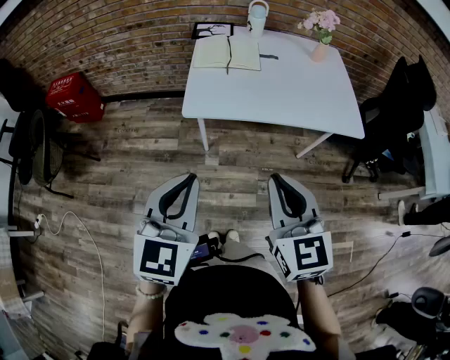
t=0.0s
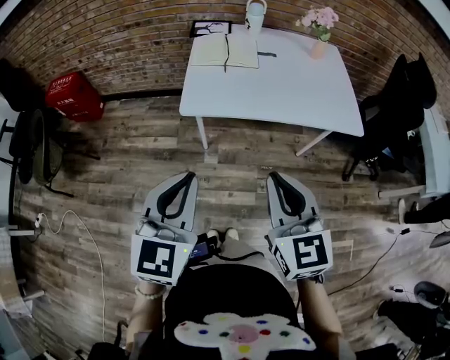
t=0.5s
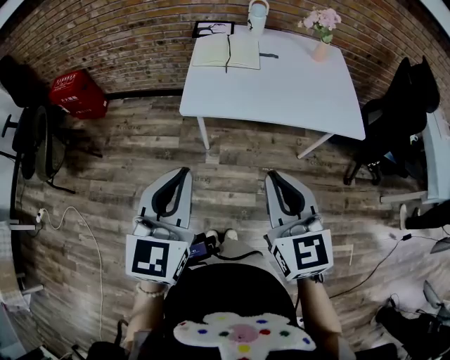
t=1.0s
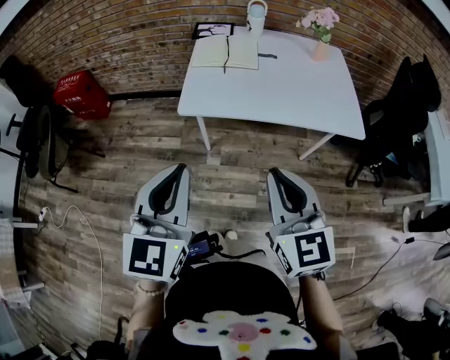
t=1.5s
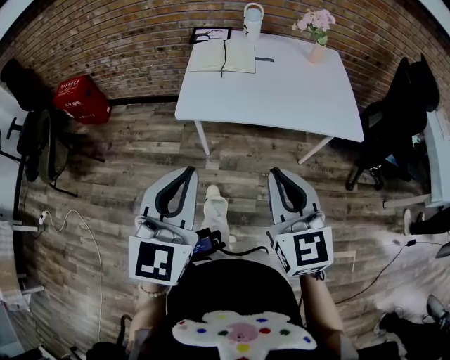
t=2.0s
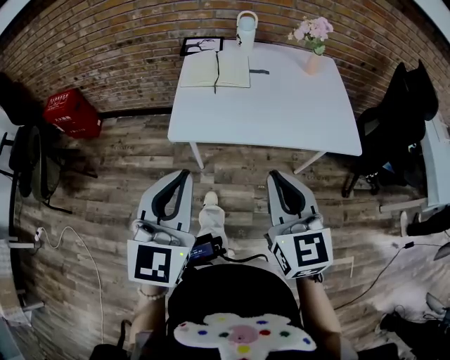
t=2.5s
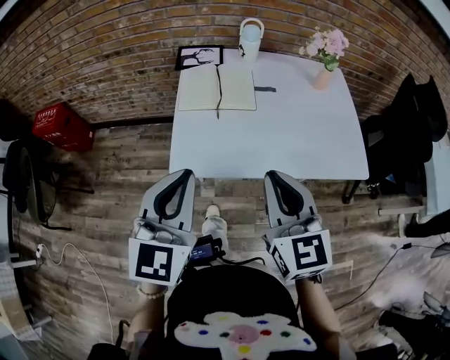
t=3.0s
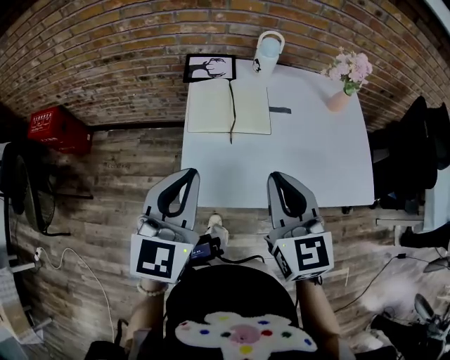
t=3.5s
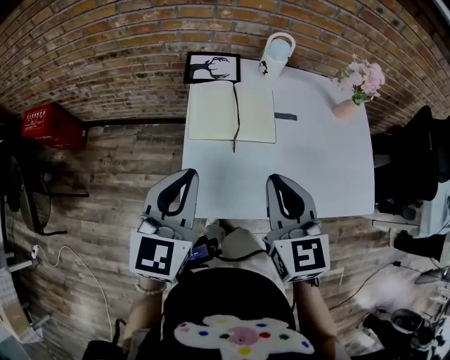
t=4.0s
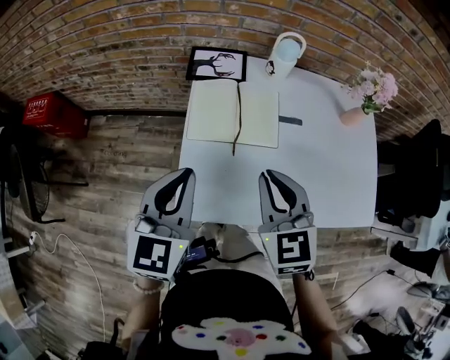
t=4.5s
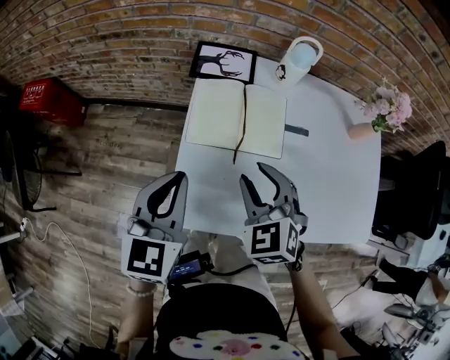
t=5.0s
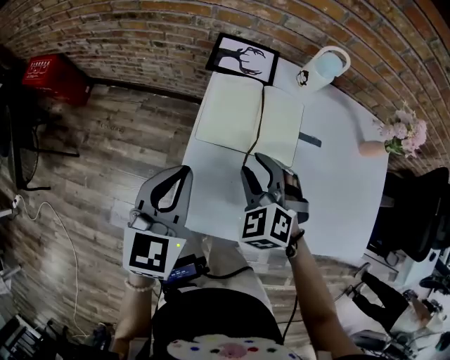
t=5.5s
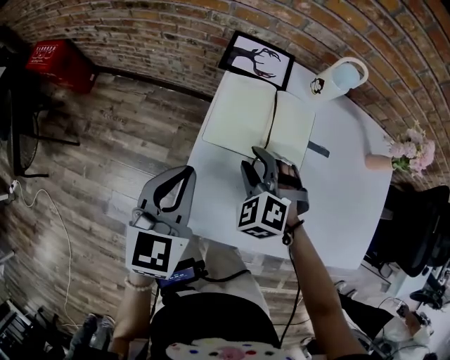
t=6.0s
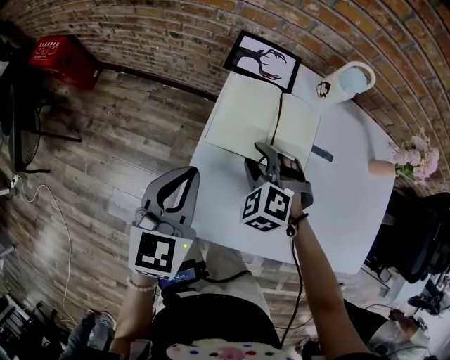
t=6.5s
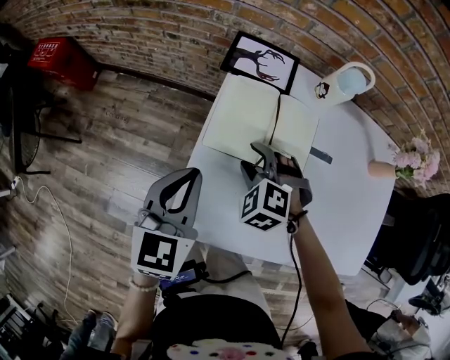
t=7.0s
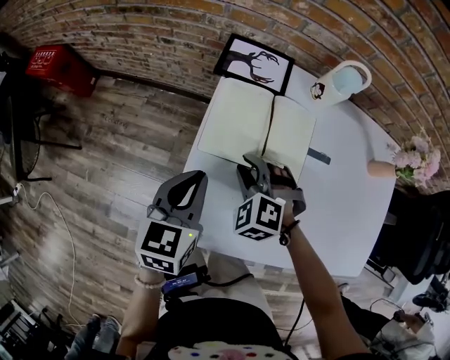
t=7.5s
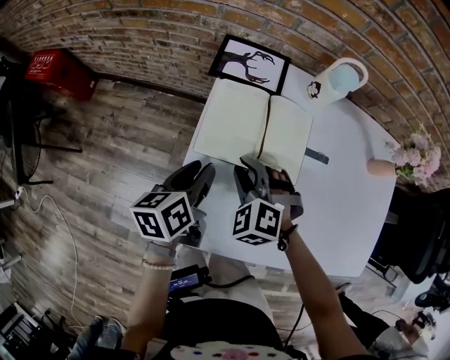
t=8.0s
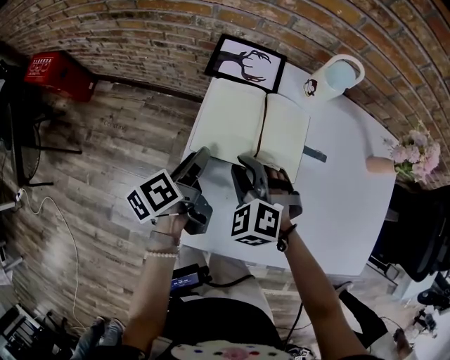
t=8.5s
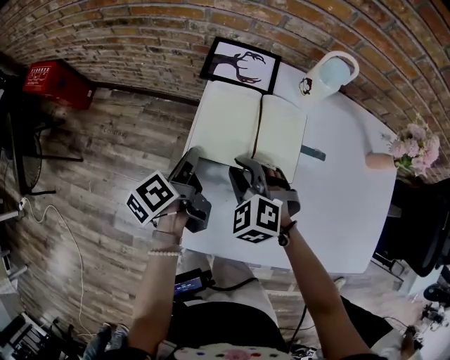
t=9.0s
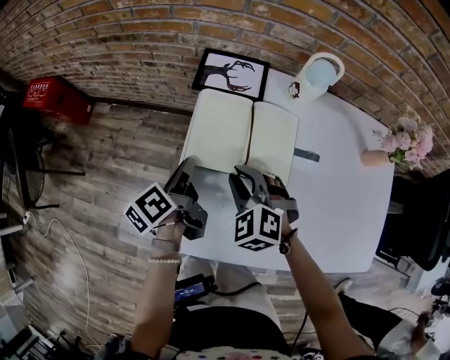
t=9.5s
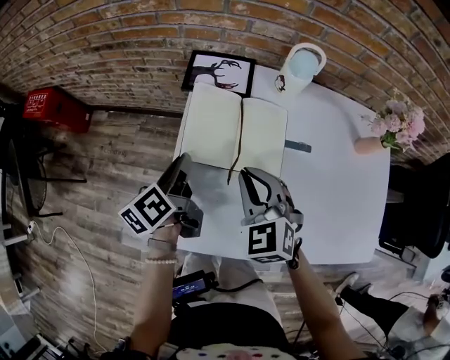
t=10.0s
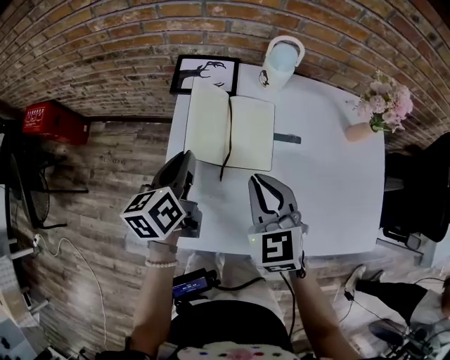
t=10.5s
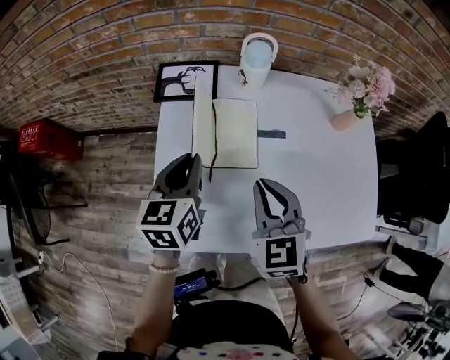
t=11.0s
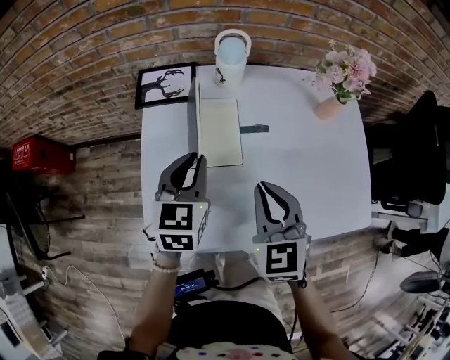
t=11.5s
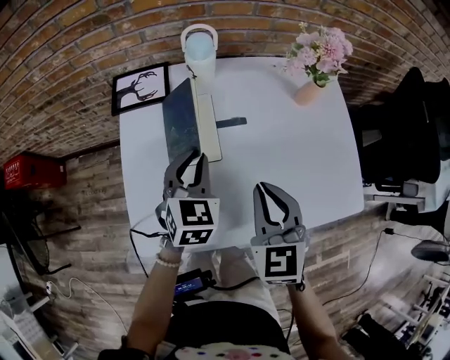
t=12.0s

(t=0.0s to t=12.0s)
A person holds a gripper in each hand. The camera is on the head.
t=0.0s - t=2.0s: The left gripper moves to the right, about 5 cm.
t=2.0s - t=4.0s: The grippers both shift forward by about 35 cm.
t=4.0s - t=6.0s: The left gripper heads downward and forward, covering approximately 10 cm. Meanwhile the right gripper shifts approximately 25 cm downward and forward, rotates around the line of its fingers by roughly 60 degrees, counterclockwise from behind, and opens up.
t=6.0s - t=8.0s: The left gripper shifts some 10 cm downward, rolls counterclockwise, seen from behind, by about 40 degrees, and opens its fingers.
t=8.0s - t=10.0s: The right gripper heads upward, covering some 10 cm, and rotates approximately 30 degrees, while the left gripper closes up.
t=10.0s - t=12.0s: The left gripper is displaced to the right by approximately 20 cm, and rolls clockwise, seen from behind, by some 80 degrees. Meanwhile the right gripper travels to the right and backward by about 20 cm, and turns by some 30 degrees.

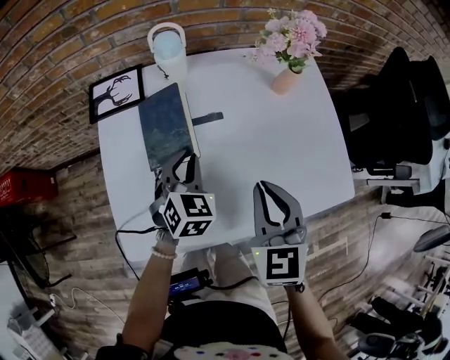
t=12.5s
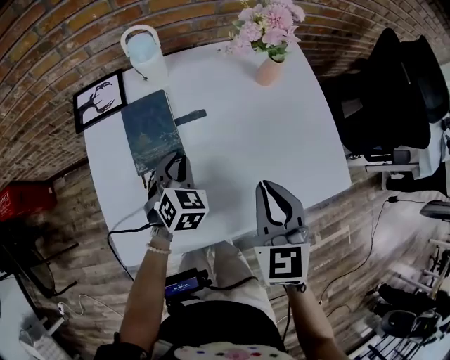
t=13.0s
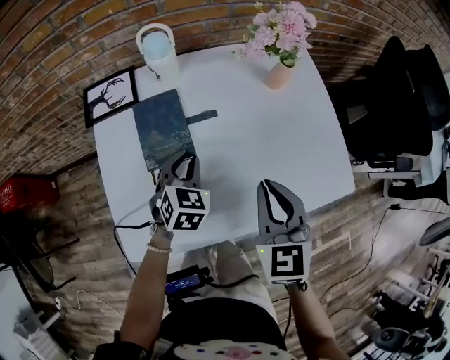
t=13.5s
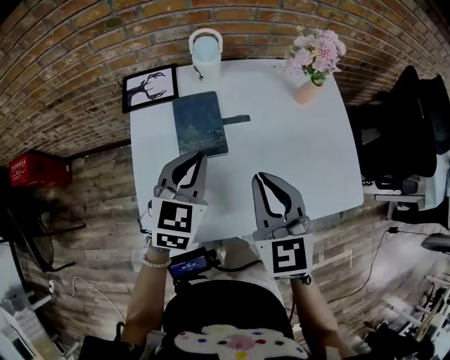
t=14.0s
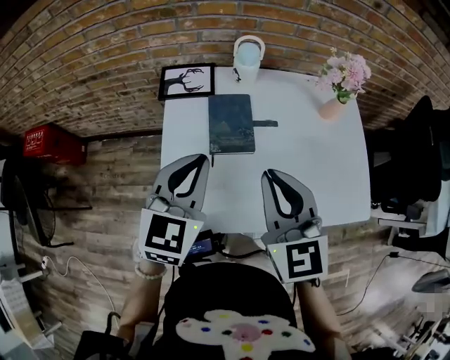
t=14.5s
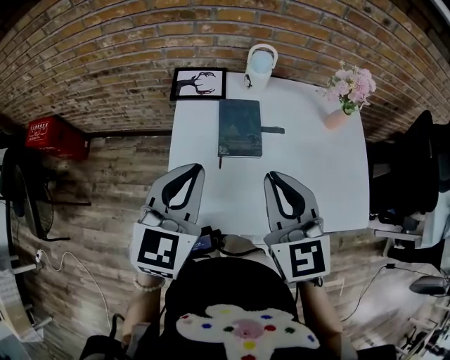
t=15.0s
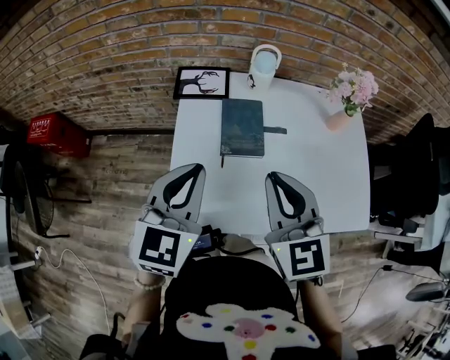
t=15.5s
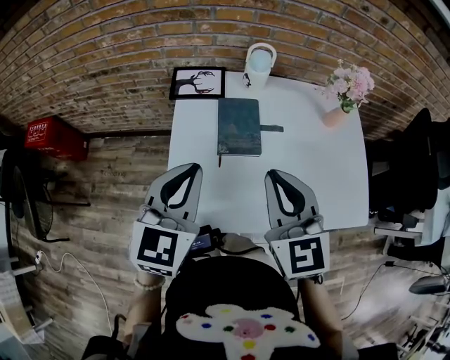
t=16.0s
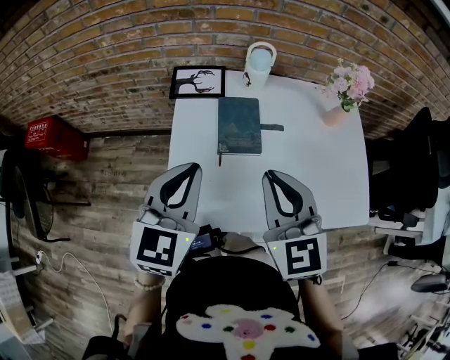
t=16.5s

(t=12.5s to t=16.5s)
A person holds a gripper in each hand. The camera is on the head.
t=12.5s - t=14.5s: The left gripper moves upward, to the left and backward, roughly 20 cm, and swivels approximately 20 degrees, while the right gripper goes some 15 cm to the left and upward, and turns by about 20 degrees.
t=14.5s - t=16.5s: The left gripper moves approximately 5 cm.

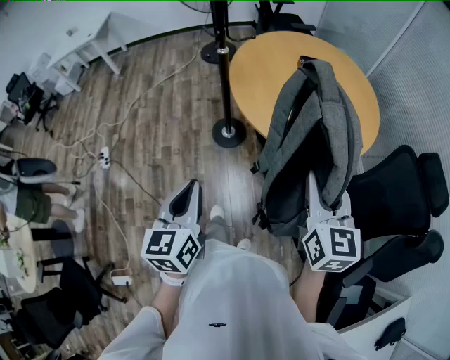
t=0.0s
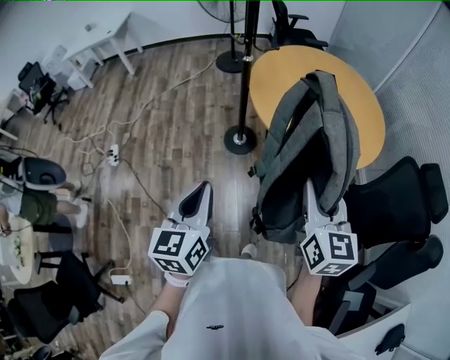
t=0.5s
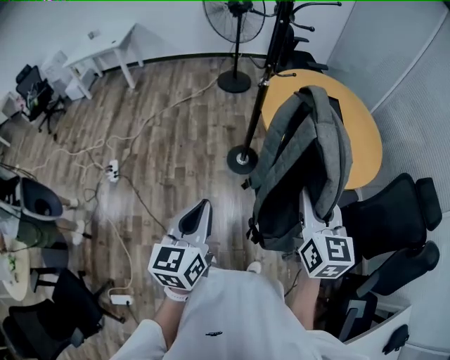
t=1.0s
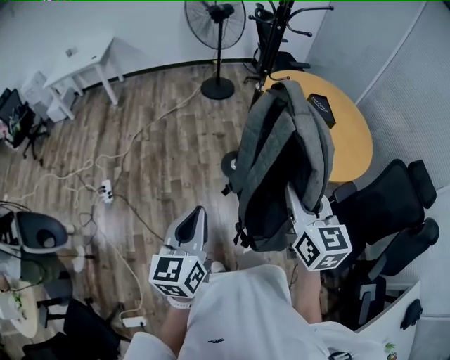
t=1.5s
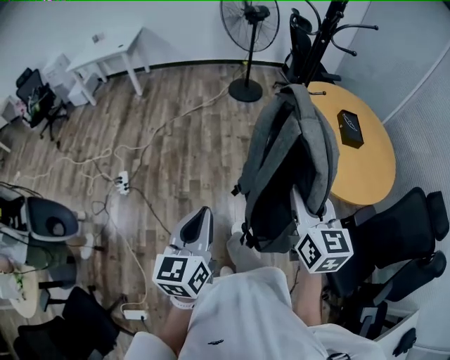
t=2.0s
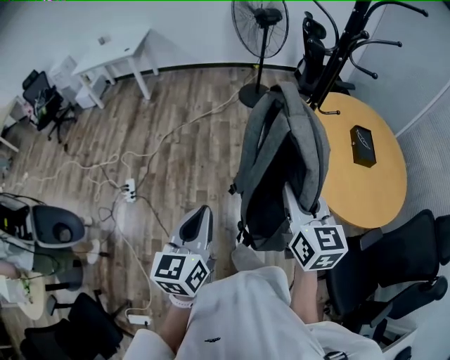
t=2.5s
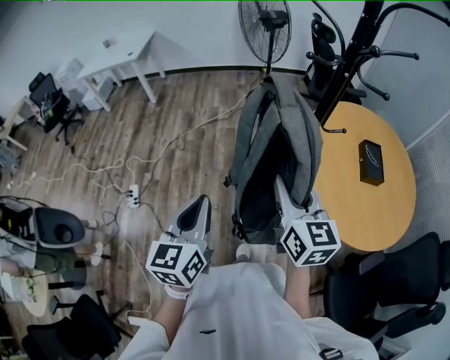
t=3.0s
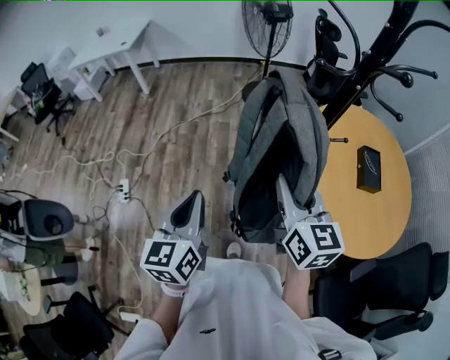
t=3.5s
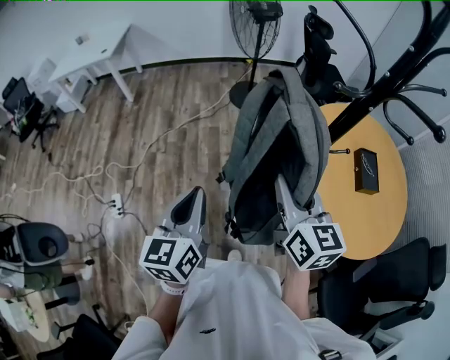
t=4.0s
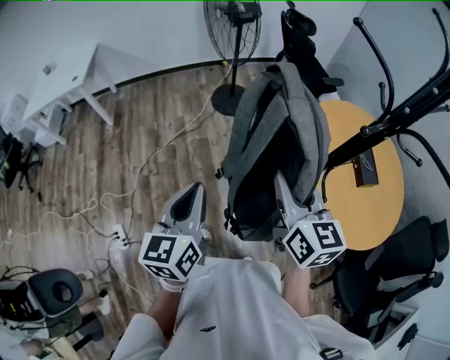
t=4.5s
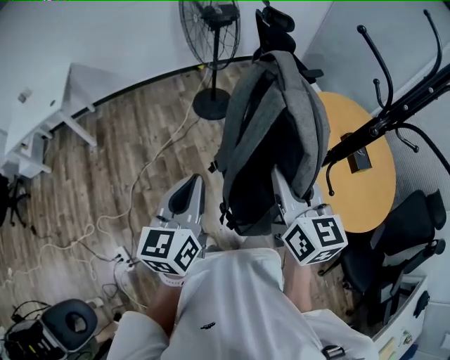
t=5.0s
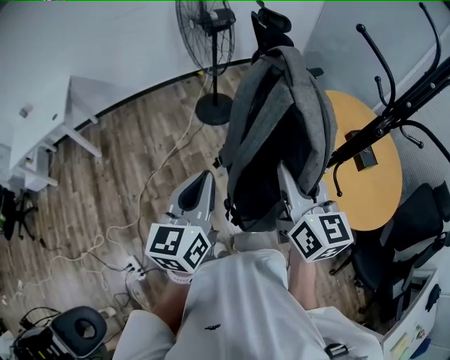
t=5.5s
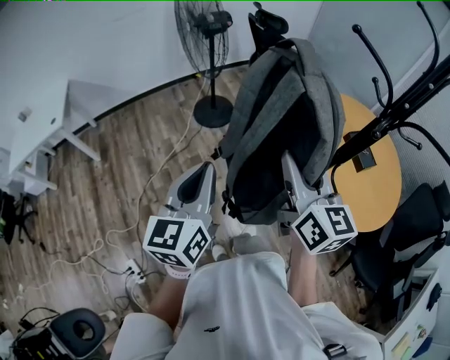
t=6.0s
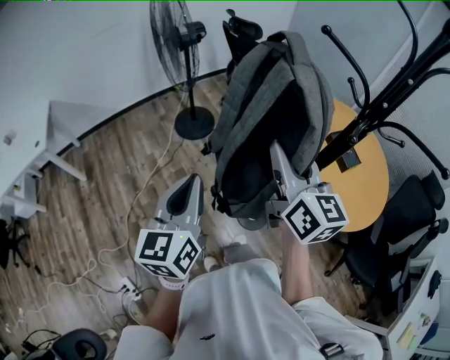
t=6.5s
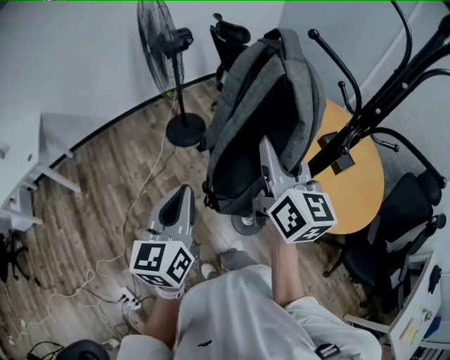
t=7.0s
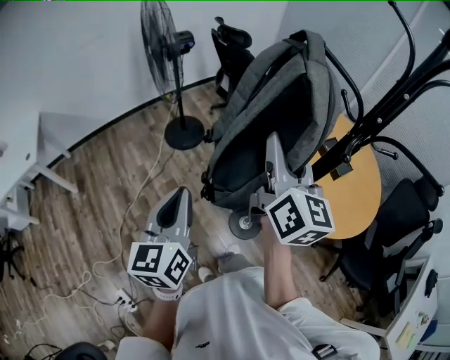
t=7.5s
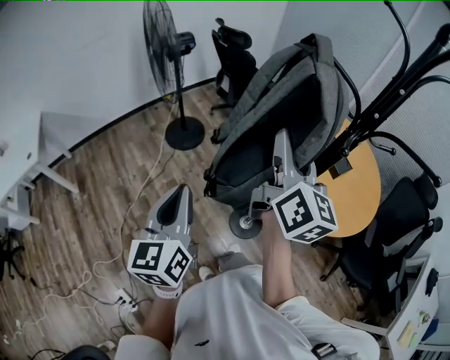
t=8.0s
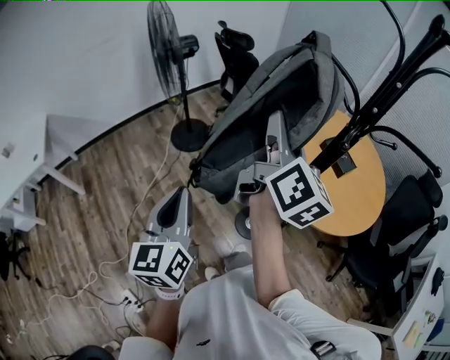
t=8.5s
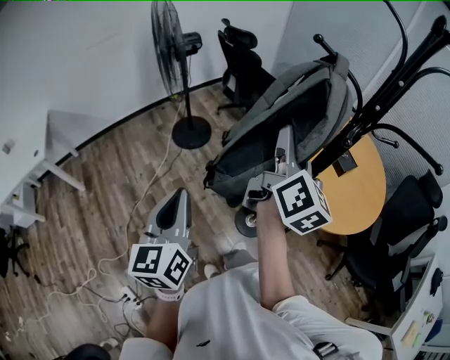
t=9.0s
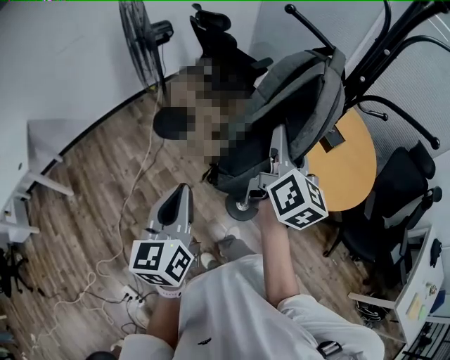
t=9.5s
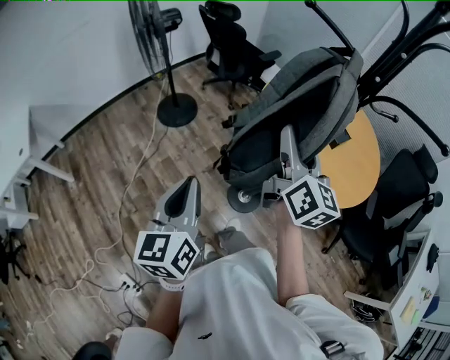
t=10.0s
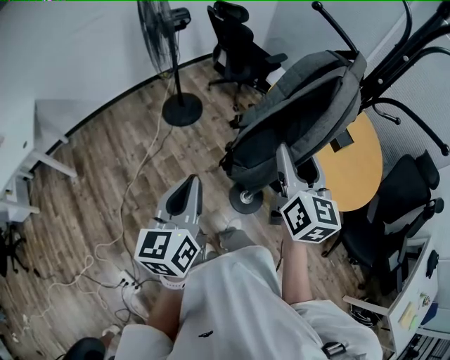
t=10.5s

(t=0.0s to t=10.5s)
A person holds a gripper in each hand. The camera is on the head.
t=0.0s - t=2.0s: The grippers both shift to the left by approximately 30 cm.
t=2.0s - t=4.0s: Both grippers travel together forward, approximately 35 cm.
t=4.0s - t=6.5s: The right gripper changes place by about 20 cm, and changes its angle by roughly 30 degrees, while the left gripper moves approximately 25 cm, and turns by approximately 30 degrees.
t=6.5s - t=8.5s: The right gripper shifts about 5 cm upward, and turns by about 30 degrees.
t=8.5s - t=10.5s: The left gripper shifts by approximately 5 cm. Meanwhile the right gripper shifts roughly 15 cm downward, backward and to the right, changes its angle by some 30 degrees, and opens.
